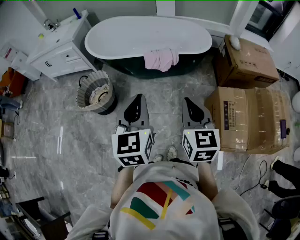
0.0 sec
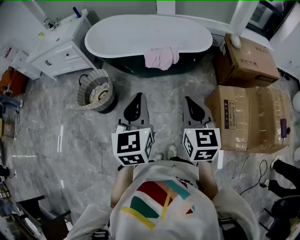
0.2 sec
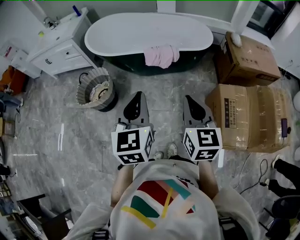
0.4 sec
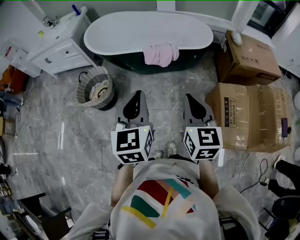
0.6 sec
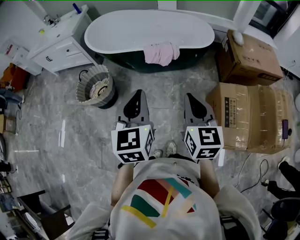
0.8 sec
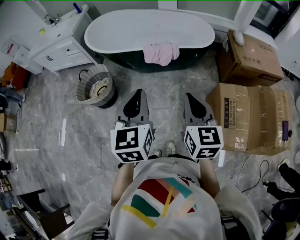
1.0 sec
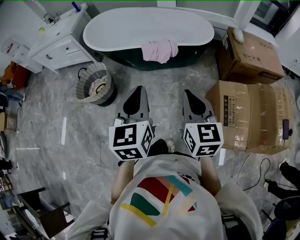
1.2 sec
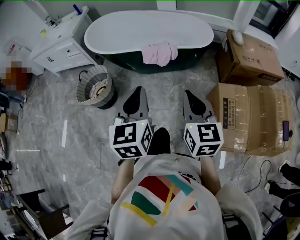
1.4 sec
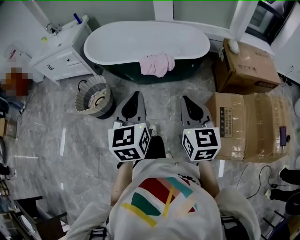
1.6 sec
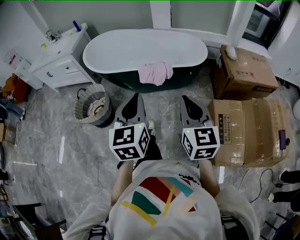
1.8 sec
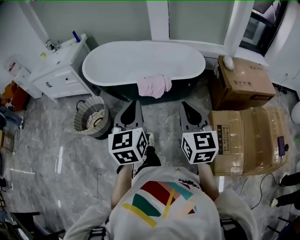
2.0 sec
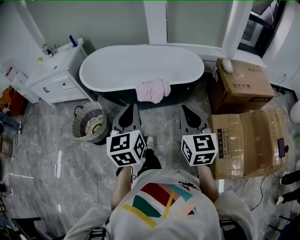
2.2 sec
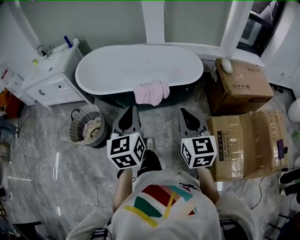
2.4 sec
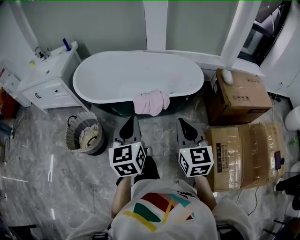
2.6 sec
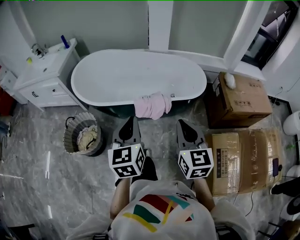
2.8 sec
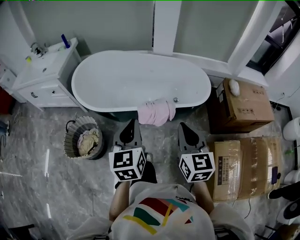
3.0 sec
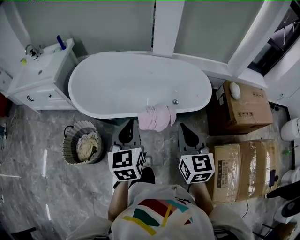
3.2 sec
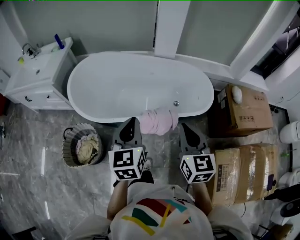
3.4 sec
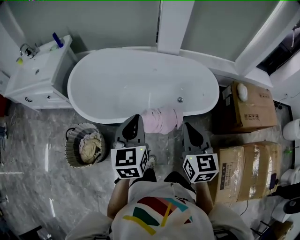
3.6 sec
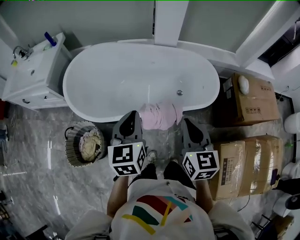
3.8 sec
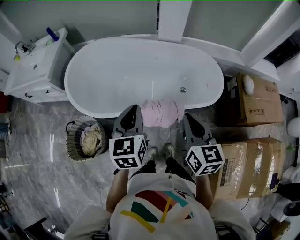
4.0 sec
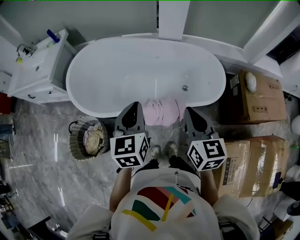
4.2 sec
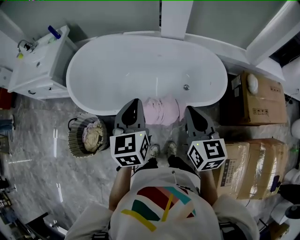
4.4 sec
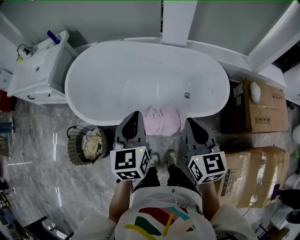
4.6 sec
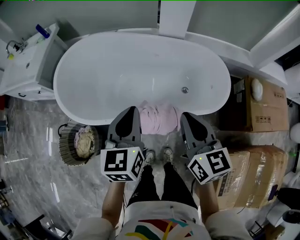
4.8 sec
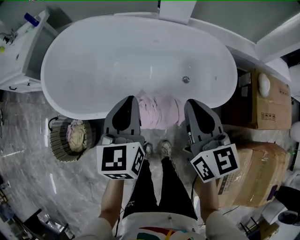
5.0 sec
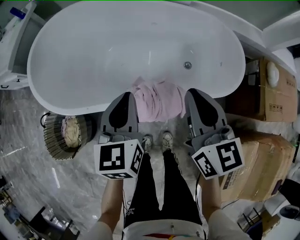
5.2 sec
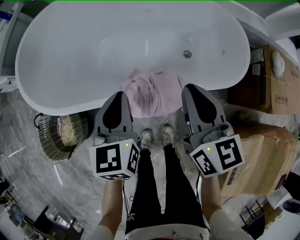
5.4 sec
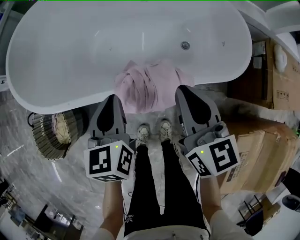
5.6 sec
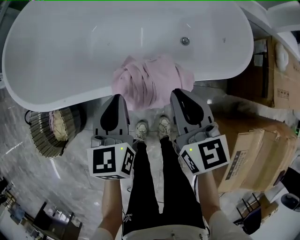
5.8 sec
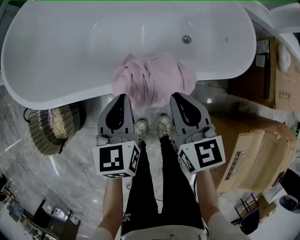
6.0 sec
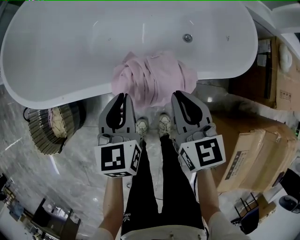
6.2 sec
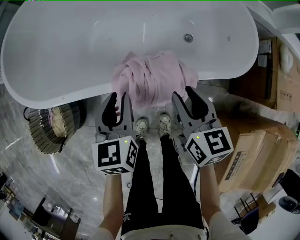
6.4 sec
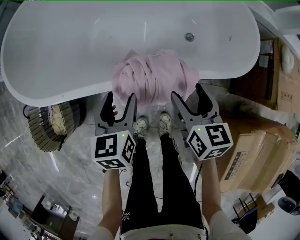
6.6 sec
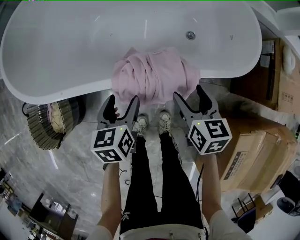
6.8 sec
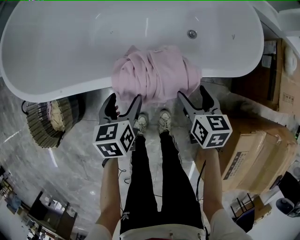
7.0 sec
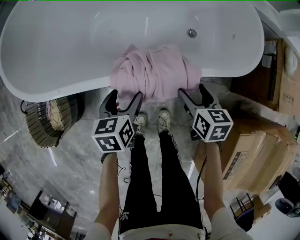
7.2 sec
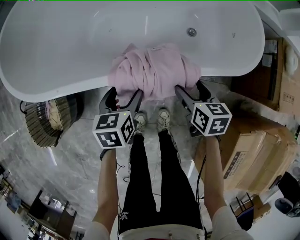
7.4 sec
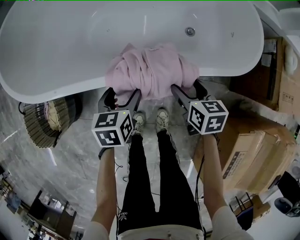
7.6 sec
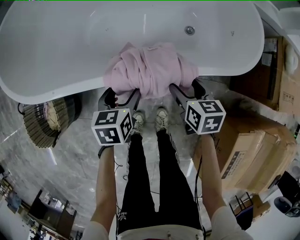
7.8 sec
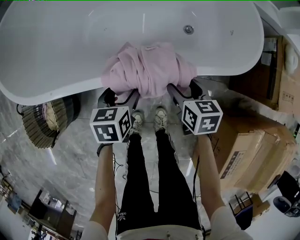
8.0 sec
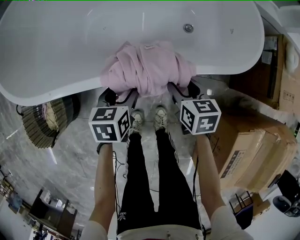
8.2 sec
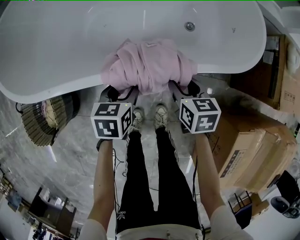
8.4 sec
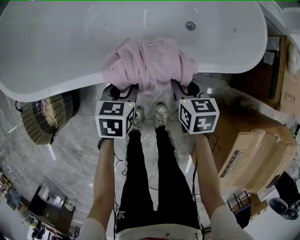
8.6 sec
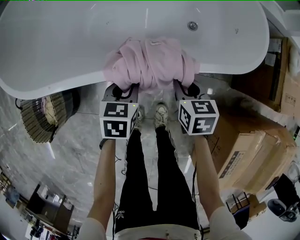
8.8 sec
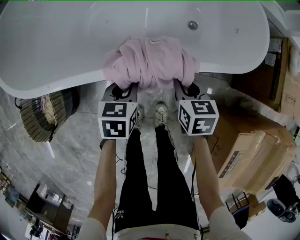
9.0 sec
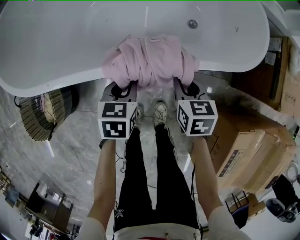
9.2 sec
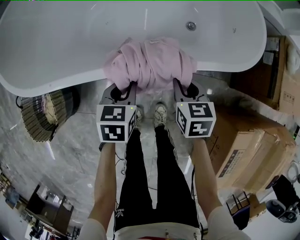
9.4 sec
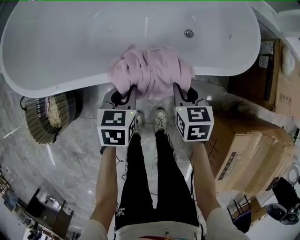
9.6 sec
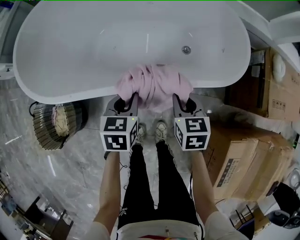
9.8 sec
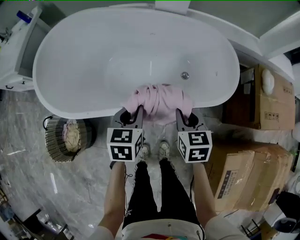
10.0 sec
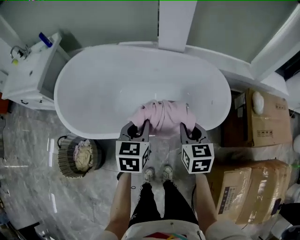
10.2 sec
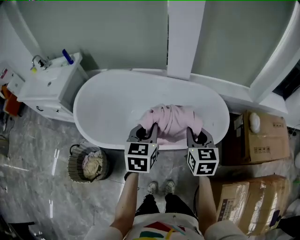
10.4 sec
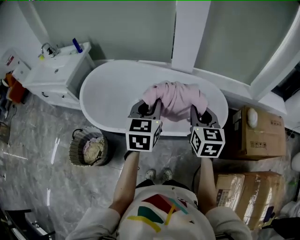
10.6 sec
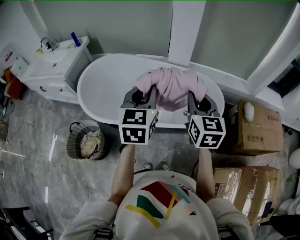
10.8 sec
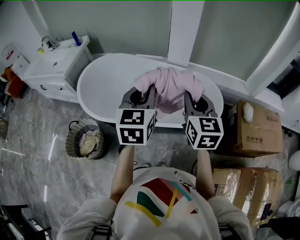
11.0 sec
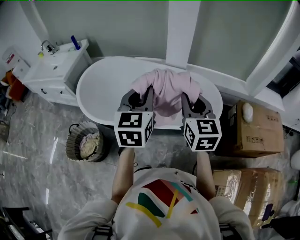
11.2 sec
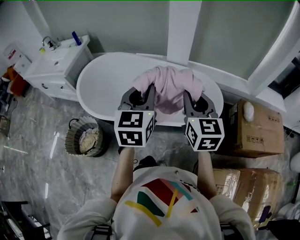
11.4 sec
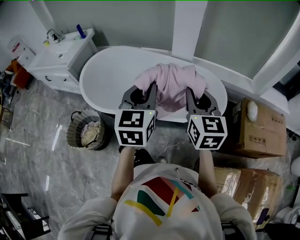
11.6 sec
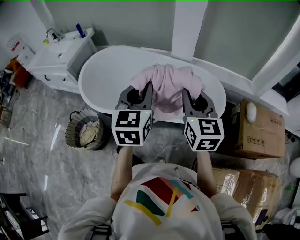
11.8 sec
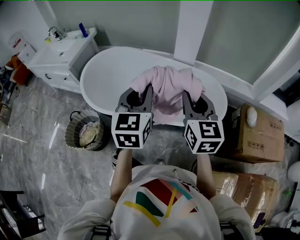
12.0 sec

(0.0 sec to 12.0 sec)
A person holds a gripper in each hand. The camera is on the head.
0.0 sec - 1.6 sec: Both grippers travel together to the right, about 5 cm.
1.6 sec - 3.0 sec: The two grippers go approximately 30 cm forward.
3.0 sec - 4.4 sec: The grippers both shift forward by approximately 20 cm.
4.4 sec - 6.0 sec: Both grippers travel together downward, about 35 cm.
6.0 sec - 7.6 sec: The right gripper shifts roughly 15 cm downward and to the right, changes its angle by some 20 degrees, and opens; the left gripper goes roughly 15 cm downward, swivels some 20 degrees, and opens.
7.6 sec - 9.0 sec: The right gripper closes; the left gripper closes.
9.0 sec - 10.4 sec: Both grippers travel together upward, some 50 cm. The left gripper rotates approximately 30 degrees. The right gripper changes its angle by approximately 30 degrees.
10.4 sec - 12.0 sec: The right gripper shifts approximately 15 cm upward, and rotates approximately 20 degrees. The left gripper heads upward and backward, covering about 15 cm.

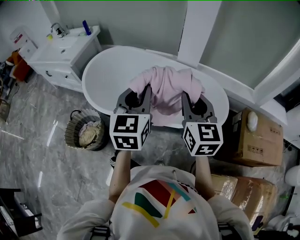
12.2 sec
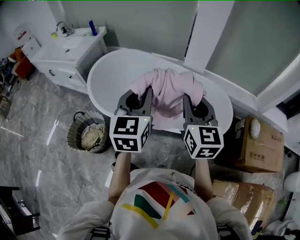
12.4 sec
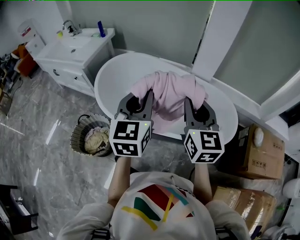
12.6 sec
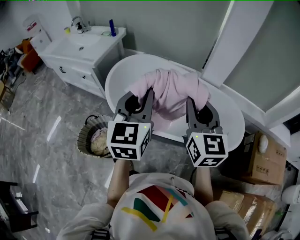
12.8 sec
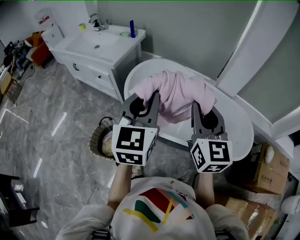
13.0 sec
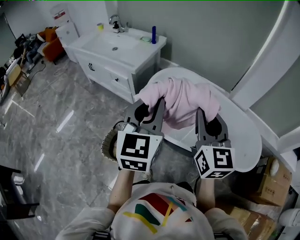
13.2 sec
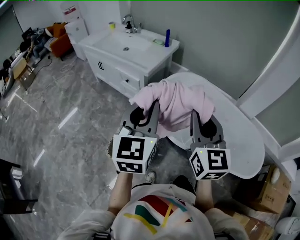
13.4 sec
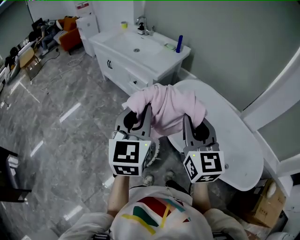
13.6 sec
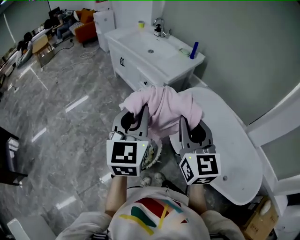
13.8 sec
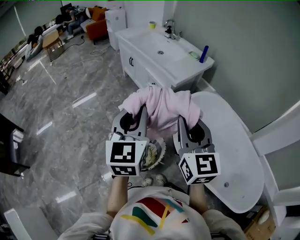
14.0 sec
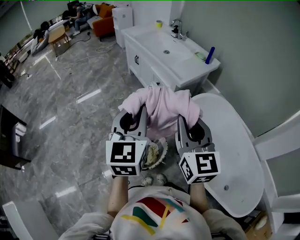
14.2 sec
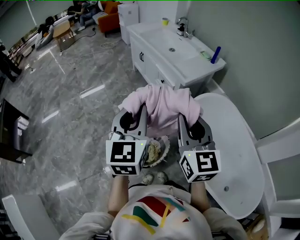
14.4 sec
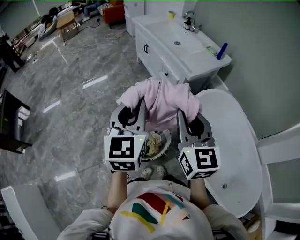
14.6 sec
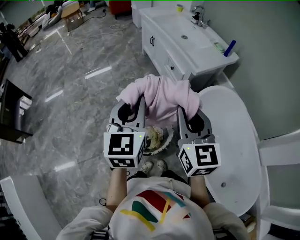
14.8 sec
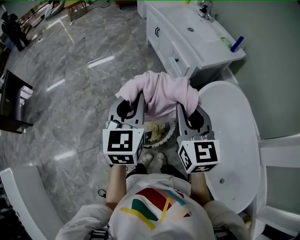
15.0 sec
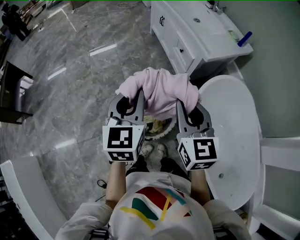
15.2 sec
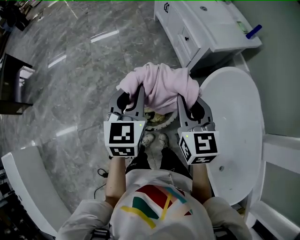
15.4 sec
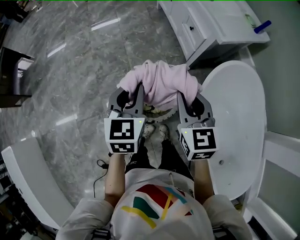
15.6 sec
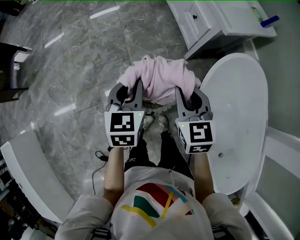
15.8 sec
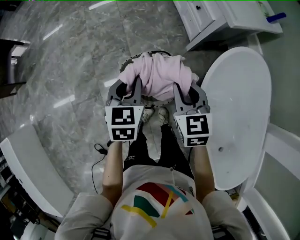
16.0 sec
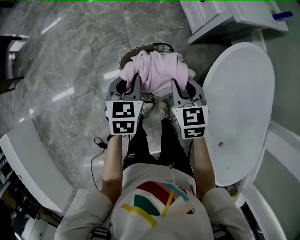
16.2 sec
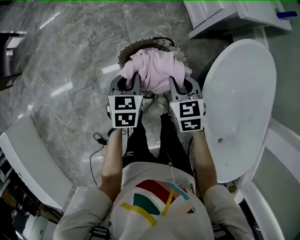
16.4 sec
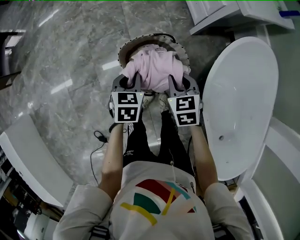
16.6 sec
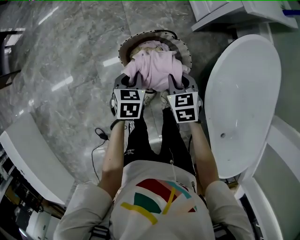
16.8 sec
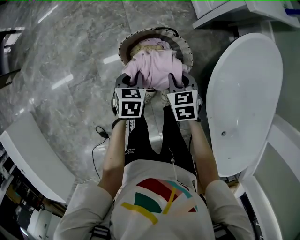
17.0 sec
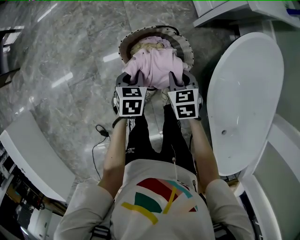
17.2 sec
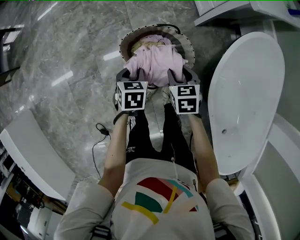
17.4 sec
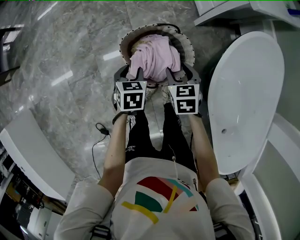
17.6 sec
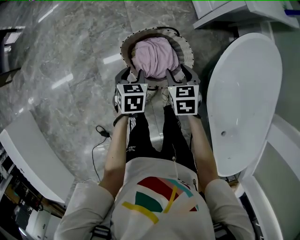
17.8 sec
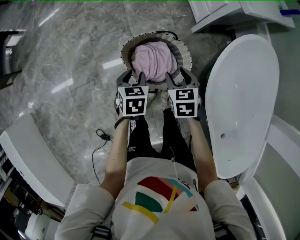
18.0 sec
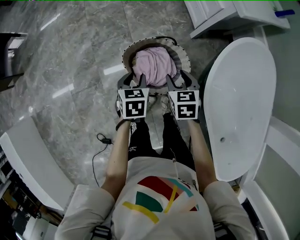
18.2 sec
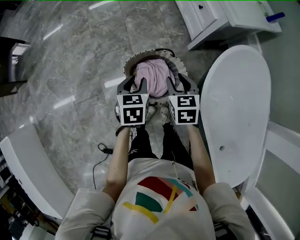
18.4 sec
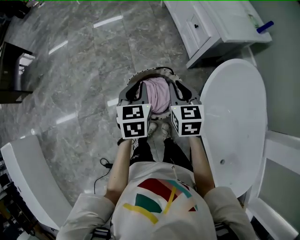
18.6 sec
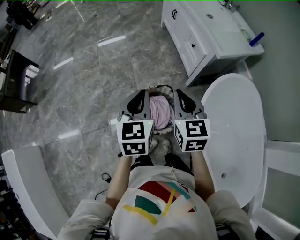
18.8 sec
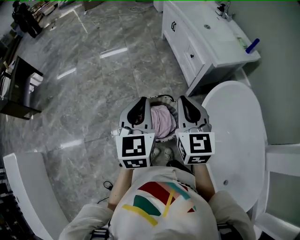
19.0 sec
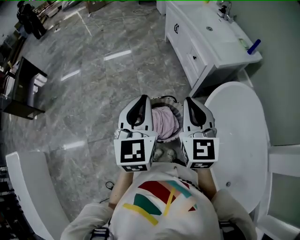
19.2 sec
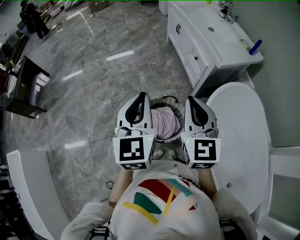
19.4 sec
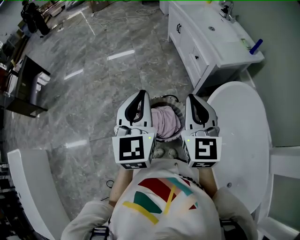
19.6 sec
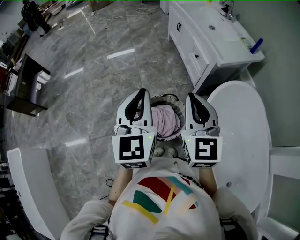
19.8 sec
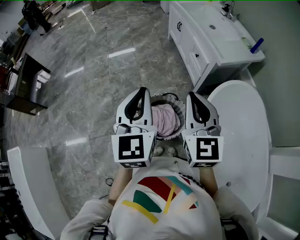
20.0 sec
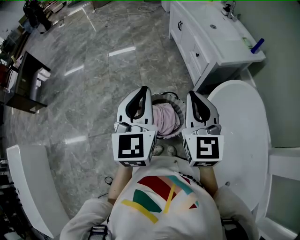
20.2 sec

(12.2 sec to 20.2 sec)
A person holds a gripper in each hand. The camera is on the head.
12.2 sec - 13.8 sec: The two grippers travel together, about 60 cm. The left gripper changes its angle by approximately 30 degrees. The right gripper turns by some 30 degrees.
13.8 sec - 15.4 sec: The left gripper heads downward and to the left, covering about 20 cm, and turns by some 30 degrees; the right gripper travels downward, to the left and forward by approximately 20 cm, and turns by approximately 30 degrees.
15.4 sec - 17.0 sec: Both grippers move downward, approximately 35 cm. The right gripper angles its fingers downward, by roughly 30 degrees, while the left gripper tilts its fingers some 40 degrees downward.
17.0 sec - 18.6 sec: Both grippers travel together upward, roughly 20 cm. The left gripper swivels about 20 degrees, while the right gripper rotates approximately 20 degrees, and opens and closes again.
18.6 sec - 20.2 sec: Both grippers travel together upward, approximately 20 cm. The right gripper changes its angle by about 30 degrees, while the left gripper rotates about 30 degrees.

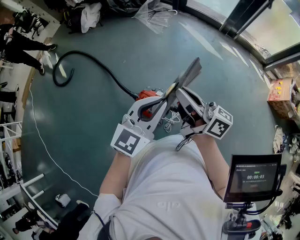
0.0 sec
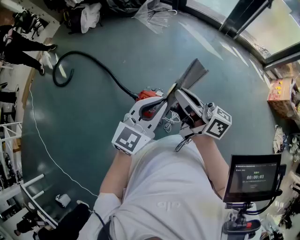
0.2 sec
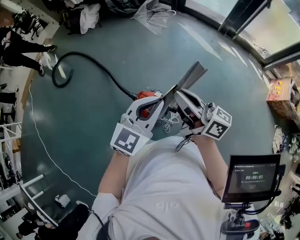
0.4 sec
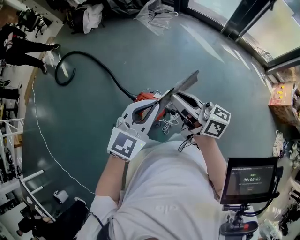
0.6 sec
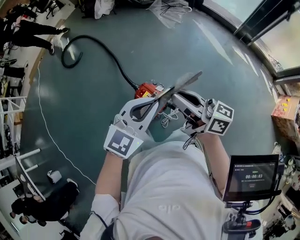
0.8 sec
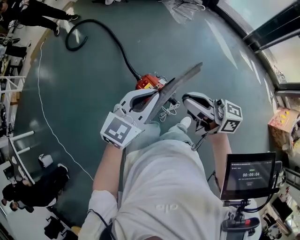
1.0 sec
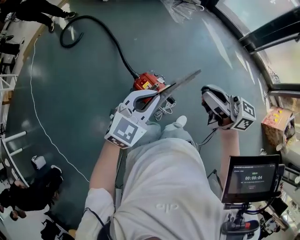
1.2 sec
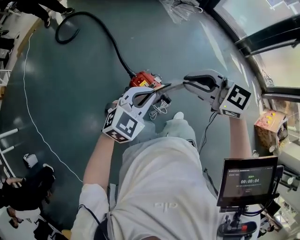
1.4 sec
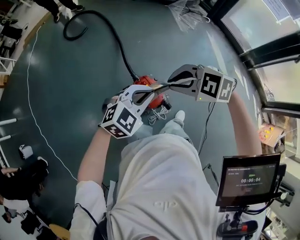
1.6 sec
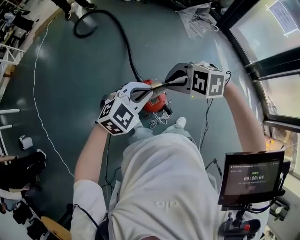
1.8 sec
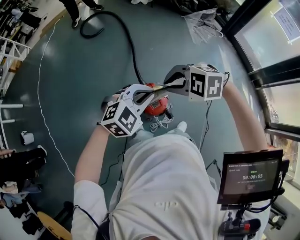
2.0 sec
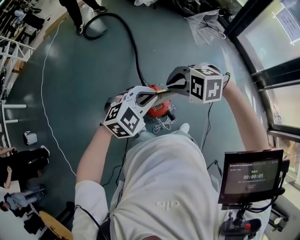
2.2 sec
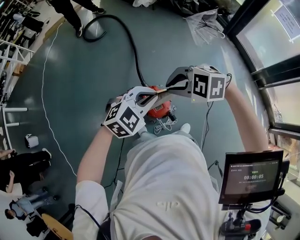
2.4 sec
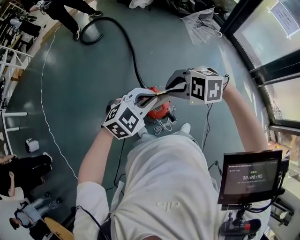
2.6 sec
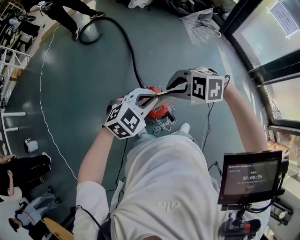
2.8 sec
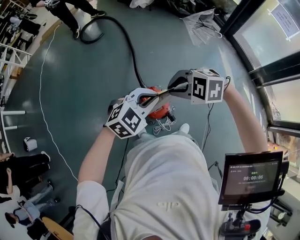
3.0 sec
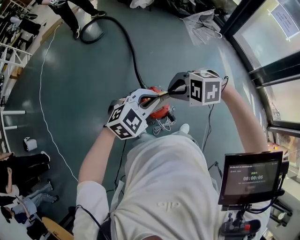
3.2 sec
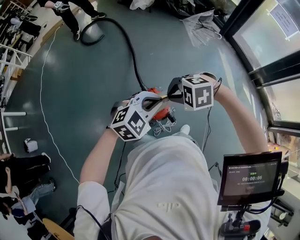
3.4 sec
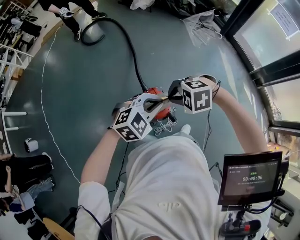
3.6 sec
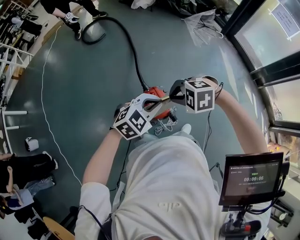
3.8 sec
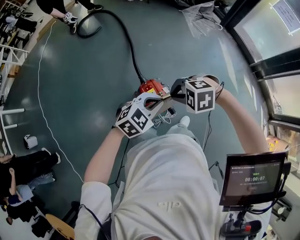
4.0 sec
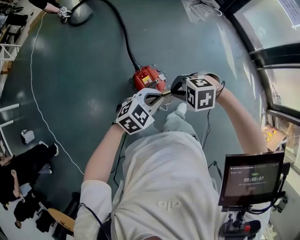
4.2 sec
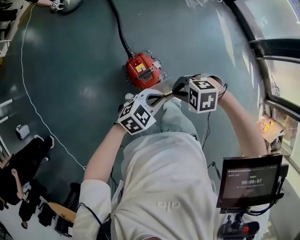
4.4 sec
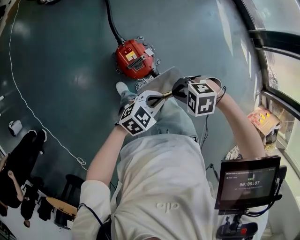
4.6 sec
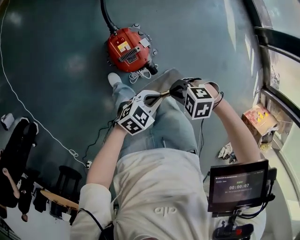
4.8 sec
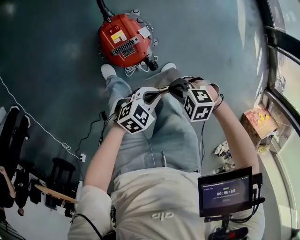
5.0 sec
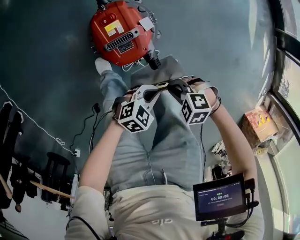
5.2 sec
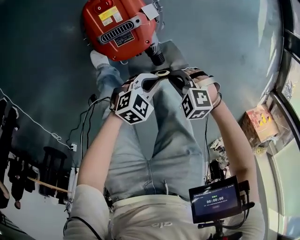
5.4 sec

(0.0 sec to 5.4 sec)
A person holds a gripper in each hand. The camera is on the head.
0.0 sec - 1.4 sec: The right gripper tilts its fingers roughly 30 degrees downward. The left gripper shifts roughly 5 cm downward, and swivels about 30 degrees.
1.4 sec - 2.8 sec: The right gripper moves some 10 cm, and rotates about 50 degrees.
2.8 sec - 4.0 sec: The grippers both shift downward by approximately 5 cm.
4.0 sec - 5.4 sec: The two grippers go about 50 cm downward. The left gripper turns by about 30 degrees.
